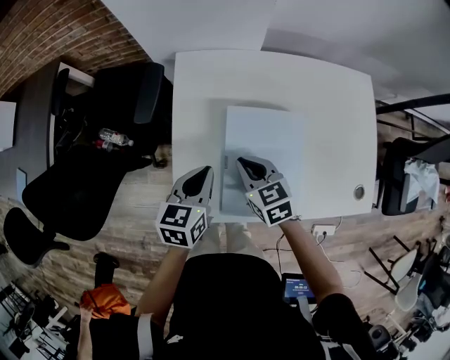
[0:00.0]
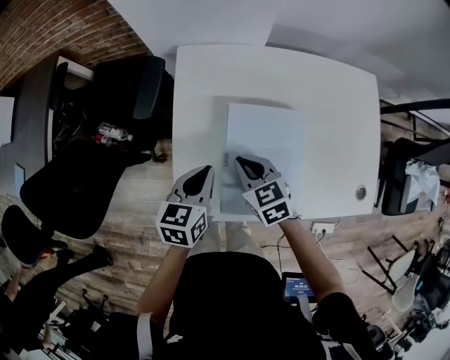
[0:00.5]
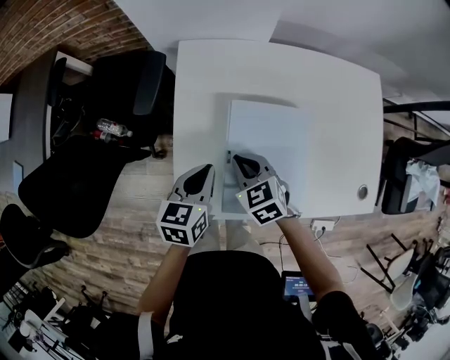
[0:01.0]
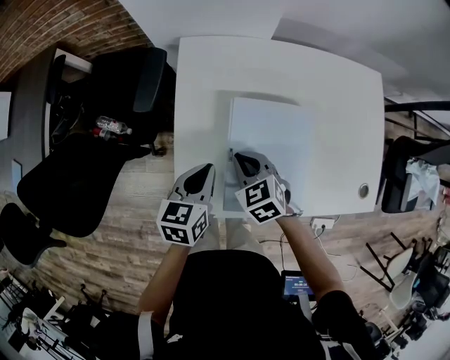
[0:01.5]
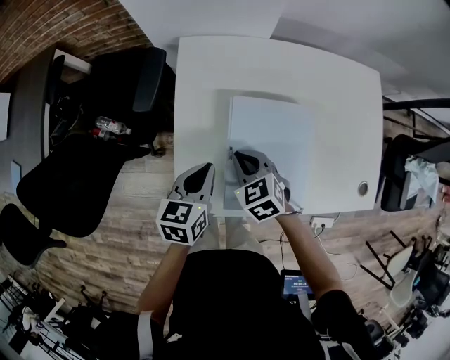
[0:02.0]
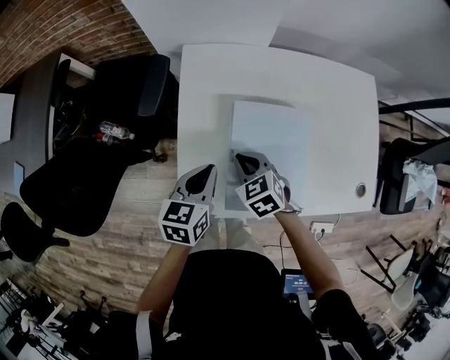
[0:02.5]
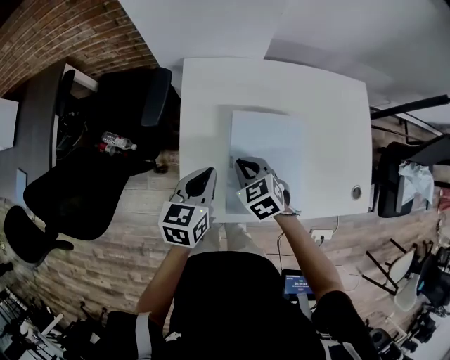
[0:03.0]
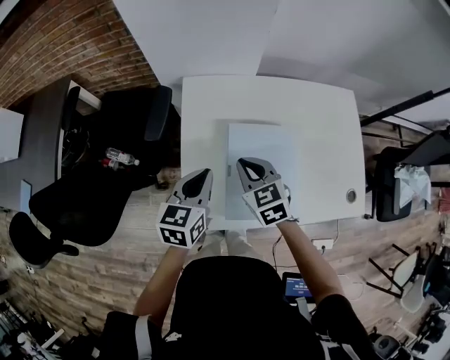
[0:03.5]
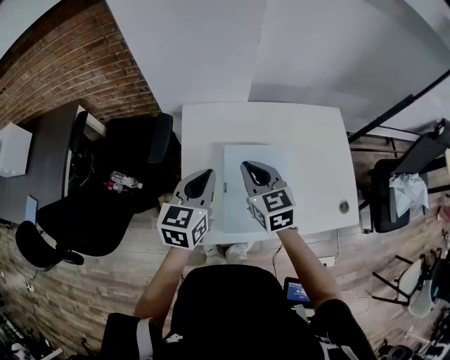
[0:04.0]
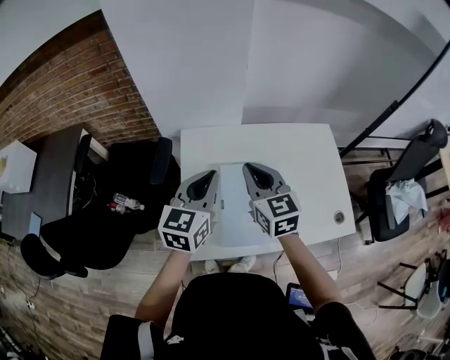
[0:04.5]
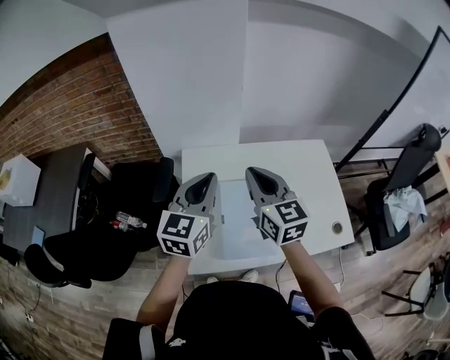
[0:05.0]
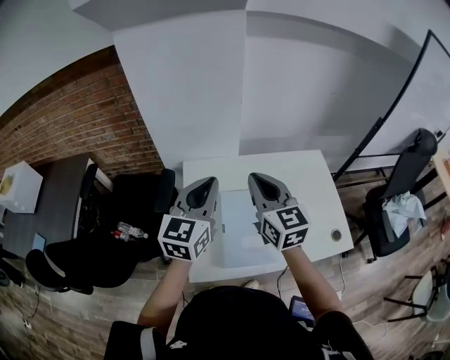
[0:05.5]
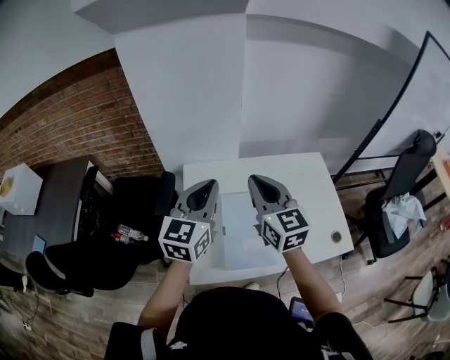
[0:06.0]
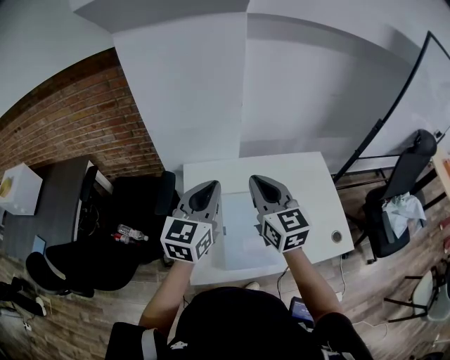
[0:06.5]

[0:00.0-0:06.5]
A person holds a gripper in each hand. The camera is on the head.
0:00.0 to 0:02.0: The grippers stay close to where they were, moving slightly.
0:02.0 to 0:04.5: Both grippers travel together upward, about 25 cm. The left gripper changes its angle by roughly 30 degrees. Meanwhile the right gripper tips its fingers upward by about 30 degrees.
0:04.5 to 0:06.5: The two grippers go some 10 cm upward.

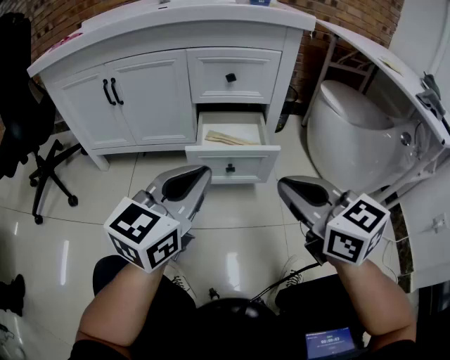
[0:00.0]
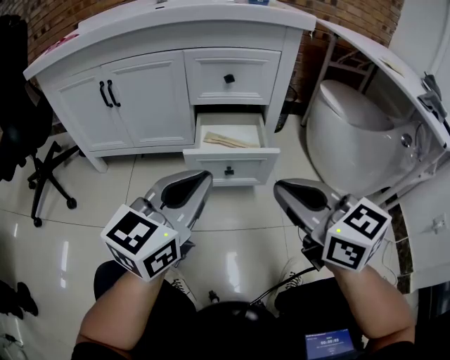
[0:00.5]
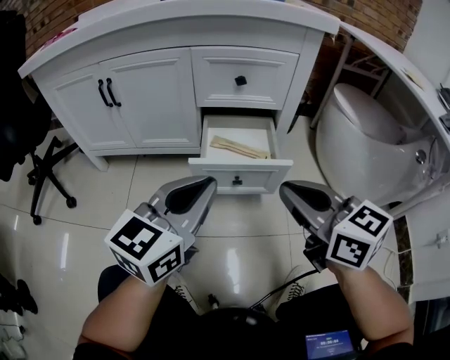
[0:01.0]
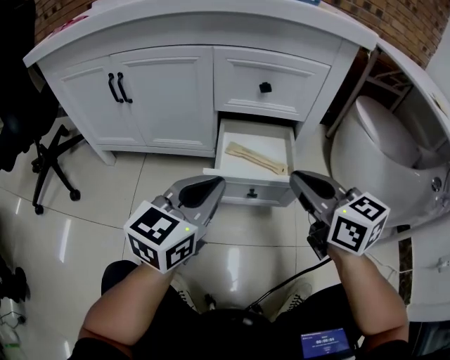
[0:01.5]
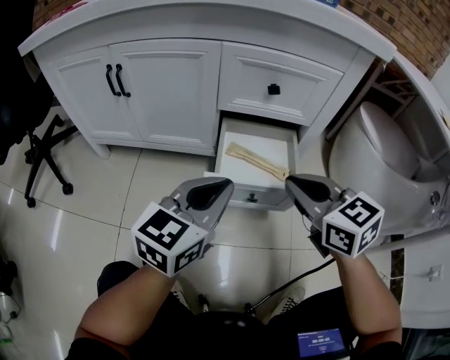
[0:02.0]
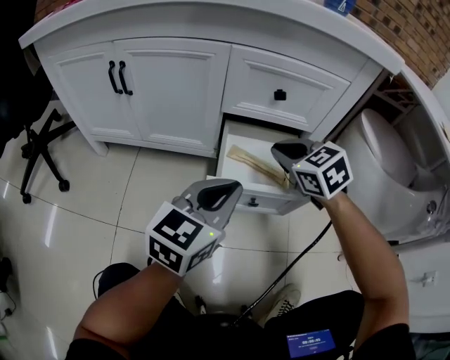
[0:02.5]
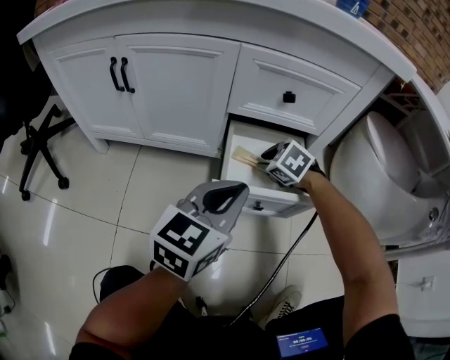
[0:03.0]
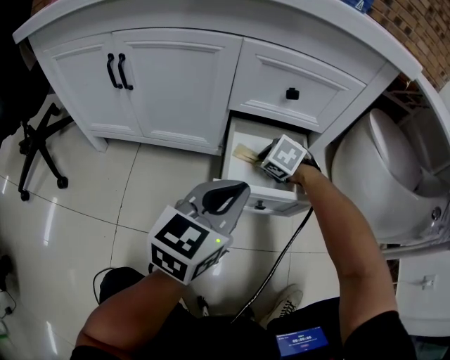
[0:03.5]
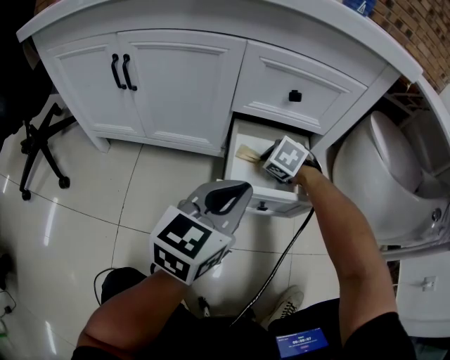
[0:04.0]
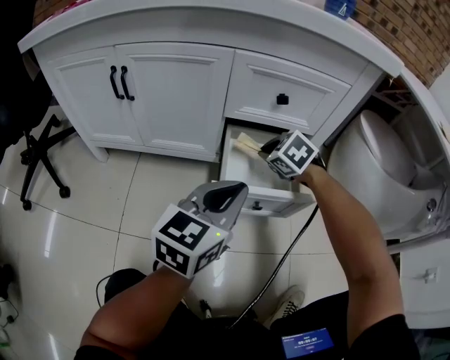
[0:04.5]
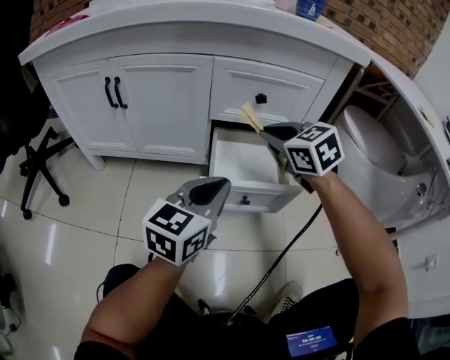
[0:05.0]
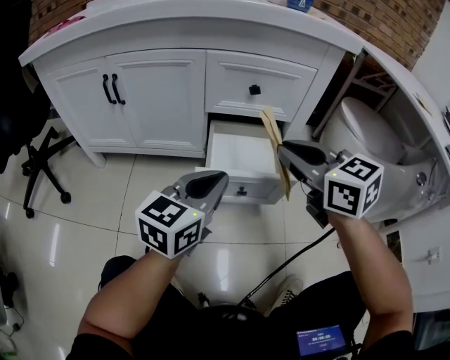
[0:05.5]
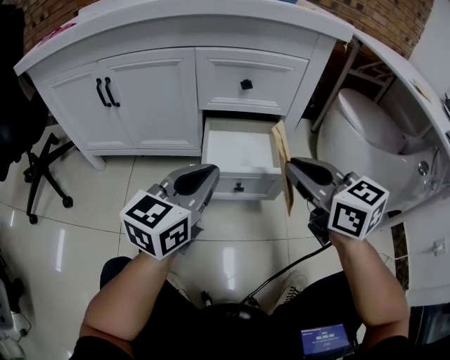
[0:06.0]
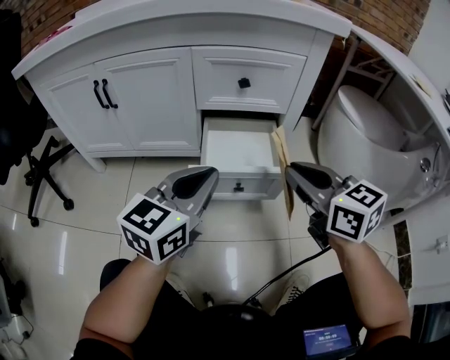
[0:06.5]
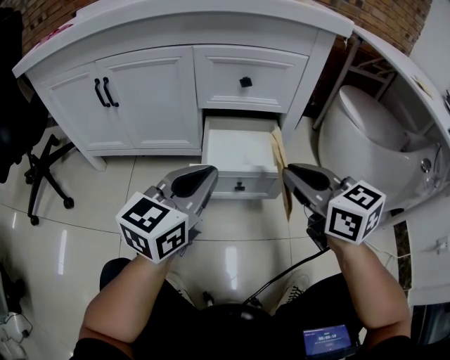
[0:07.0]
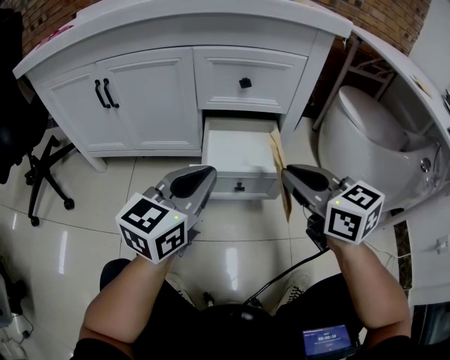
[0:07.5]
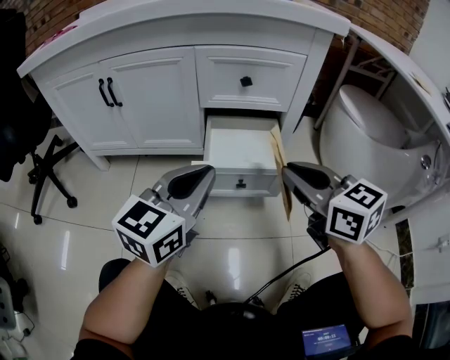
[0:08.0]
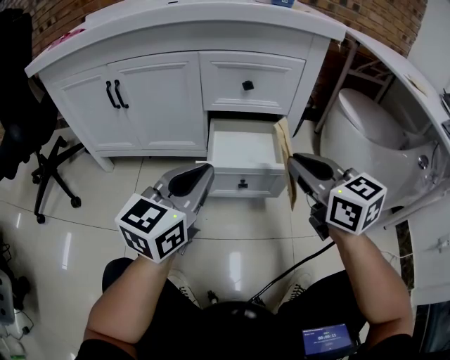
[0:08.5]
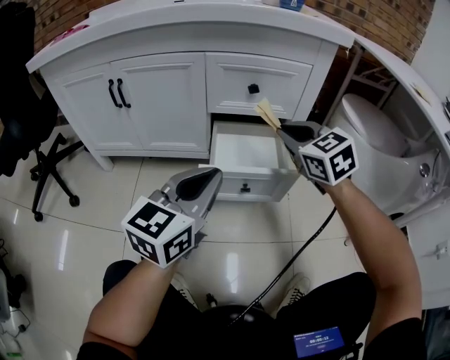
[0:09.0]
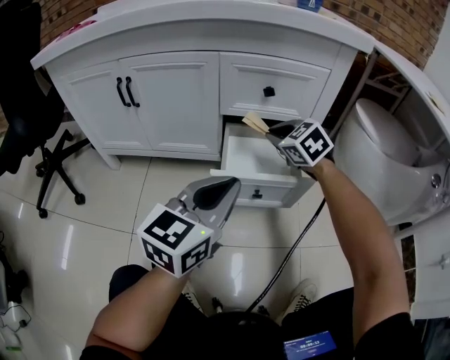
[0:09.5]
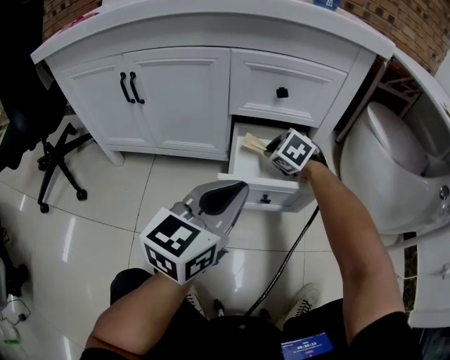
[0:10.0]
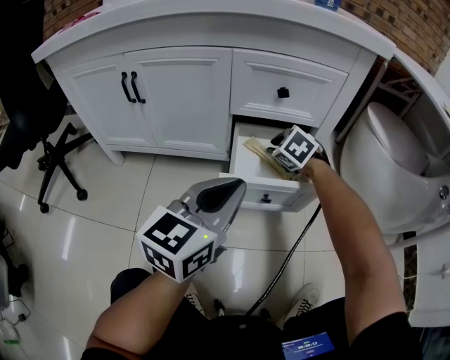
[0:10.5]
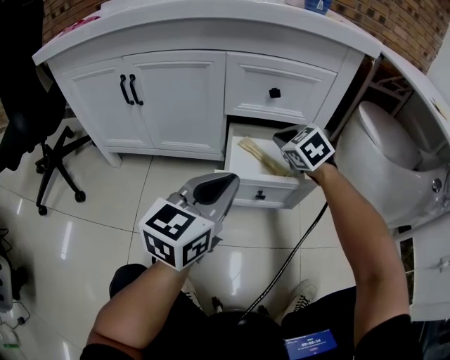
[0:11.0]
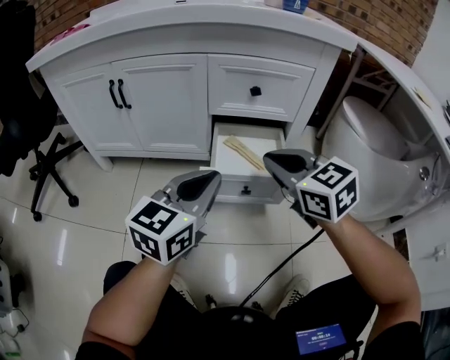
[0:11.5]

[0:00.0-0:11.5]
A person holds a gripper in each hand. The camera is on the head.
0:00.0 to 0:02.0: The left gripper shifts approximately 15 cm forward and downward. The right gripper is displaced forward by roughly 15 cm.
0:02.0 to 0:04.0: The right gripper travels downward and forward by some 25 cm, and points its fingers roughly 40 degrees further downward.
0:04.0 to 0:06.0: The right gripper is displaced upward and backward by approximately 30 cm, and tips its fingers upward by approximately 50 degrees.
0:06.0 to 0:07.5: There are only small adjustments of the grippers.
0:07.5 to 0:09.5: The right gripper heads forward and downward, covering approximately 20 cm, and rotates roughly 40 degrees.
0:09.5 to 0:11.5: The right gripper moves backward and upward, some 15 cm, and changes its angle by roughly 20 degrees.

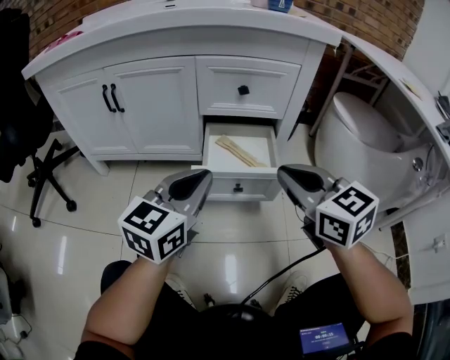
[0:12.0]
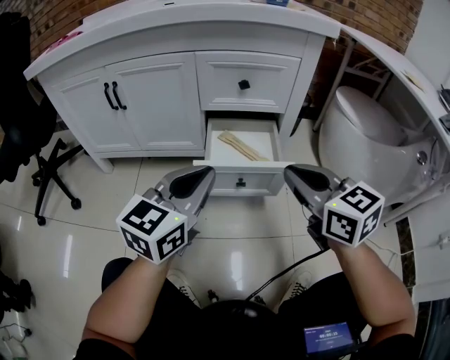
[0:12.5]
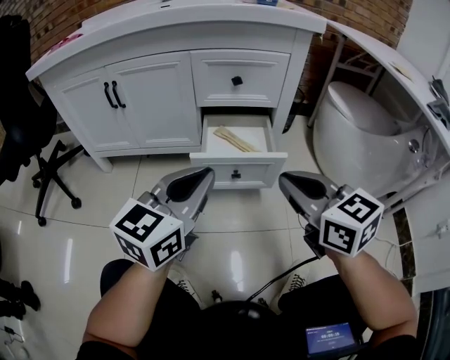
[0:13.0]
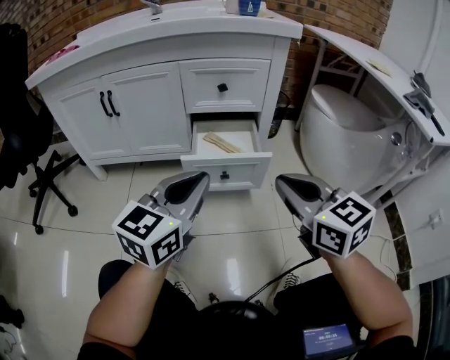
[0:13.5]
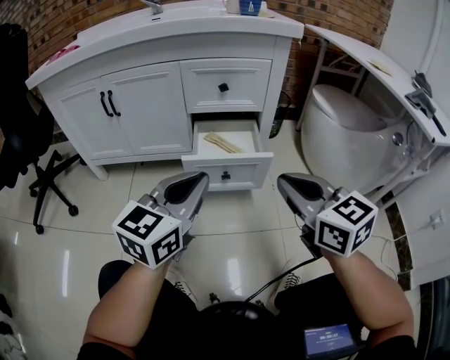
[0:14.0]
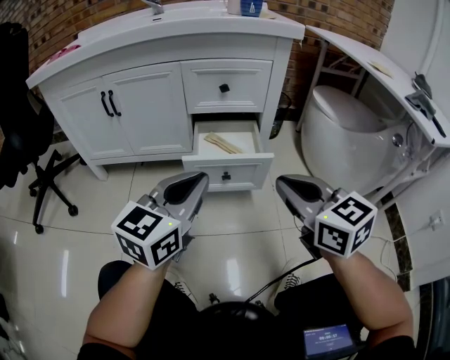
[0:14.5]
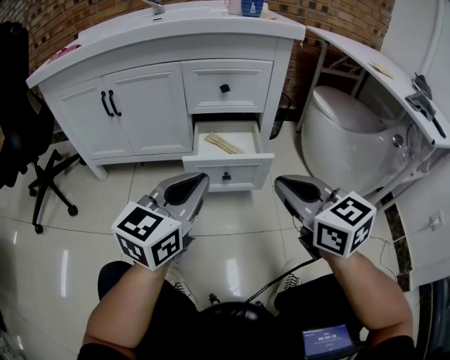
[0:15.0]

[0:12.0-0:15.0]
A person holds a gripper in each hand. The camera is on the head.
0:12.0 to 0:13.5: The two grippers go roughly 10 cm backward.
0:13.5 to 0:15.0: Neither gripper changes place.

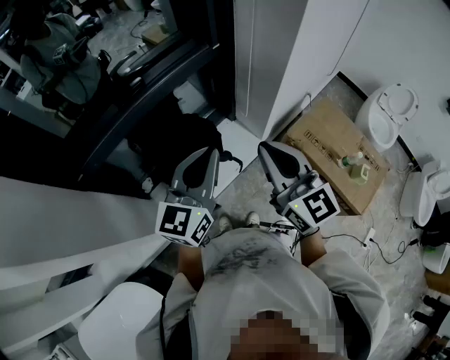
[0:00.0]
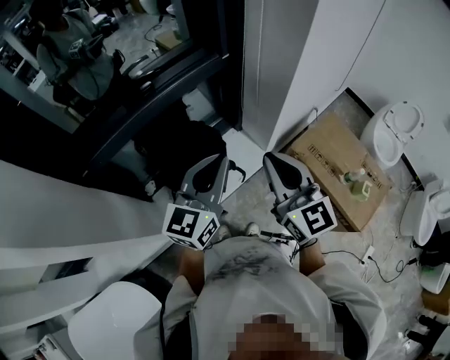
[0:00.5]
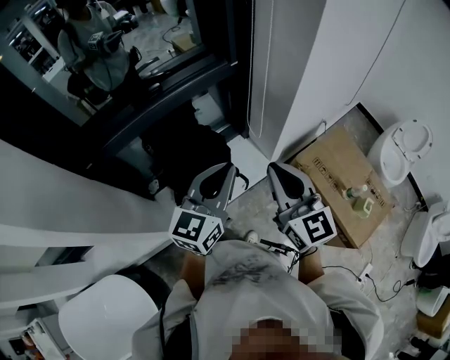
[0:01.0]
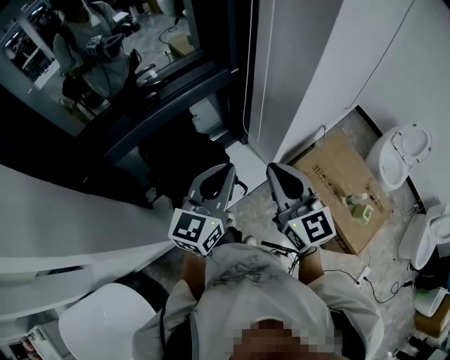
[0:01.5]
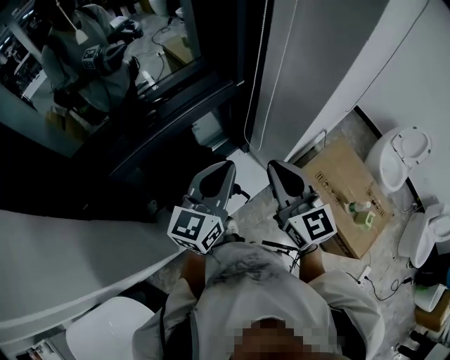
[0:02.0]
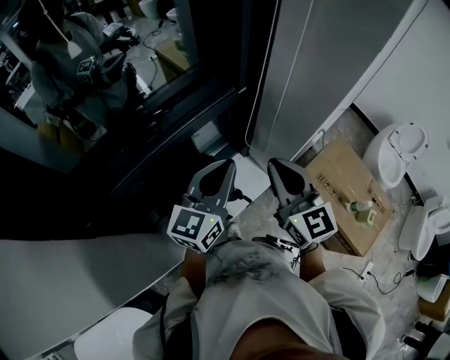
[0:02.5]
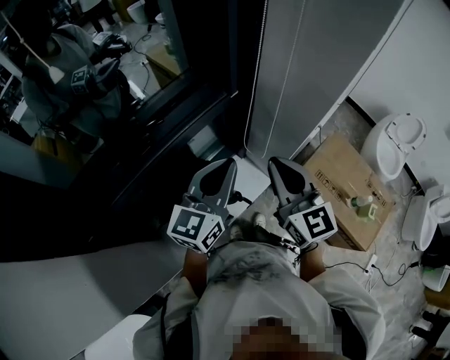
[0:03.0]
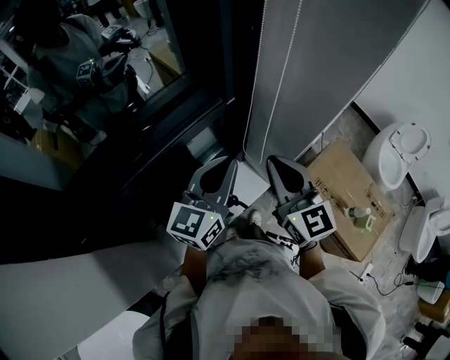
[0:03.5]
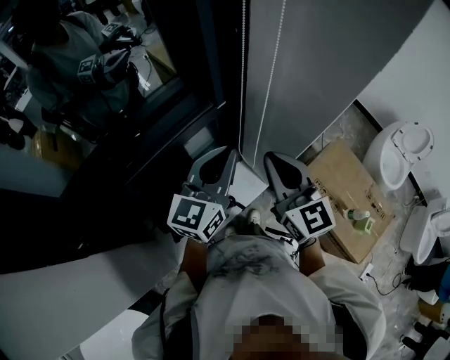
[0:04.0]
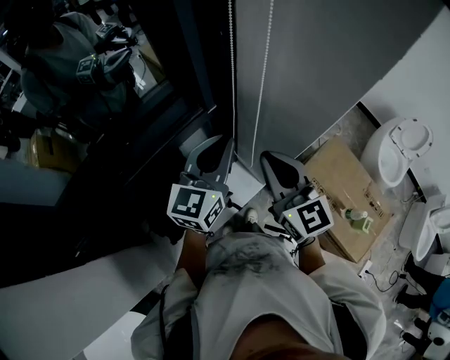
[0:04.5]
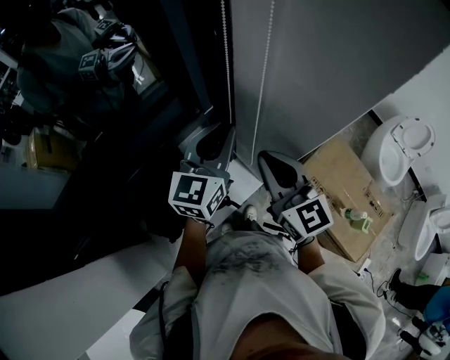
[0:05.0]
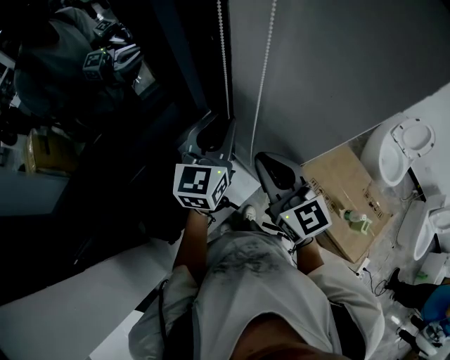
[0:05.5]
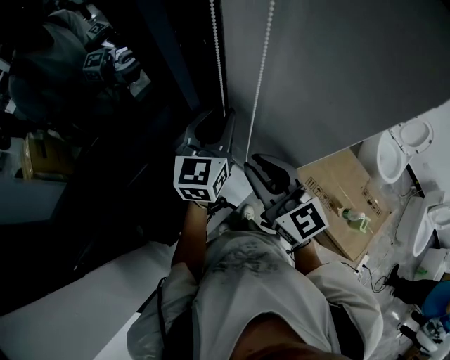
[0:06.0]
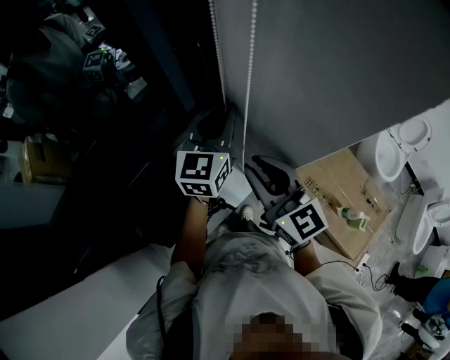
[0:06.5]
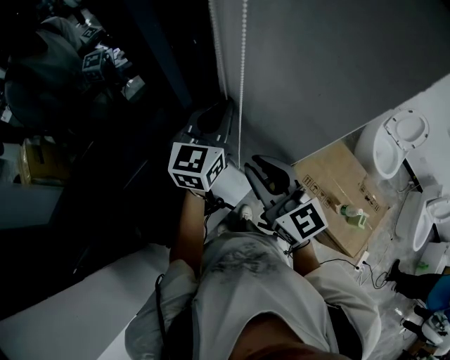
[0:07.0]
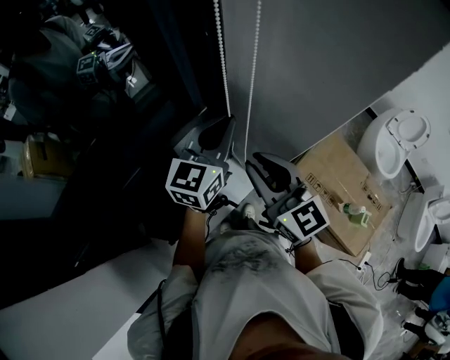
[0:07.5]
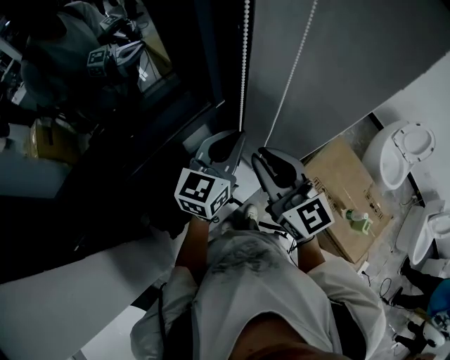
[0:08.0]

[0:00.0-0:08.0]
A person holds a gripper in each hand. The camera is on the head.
0:00.0 to 0:02.0: Both grippers travel together forward, approximately 15 cm.
0:02.0 to 0:04.0: Both grippers move forward, approximately 15 cm.
0:04.0 to 0:06.0: The right gripper shifts roughly 5 cm forward. Meanwhile the left gripper shifts about 15 cm forward, and opens its fingers.
0:06.0 to 0:08.0: The left gripper goes approximately 10 cm backward, and closes up. Meanwhile the right gripper moves roughly 5 cm.
